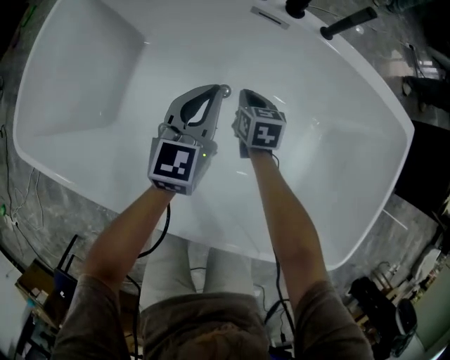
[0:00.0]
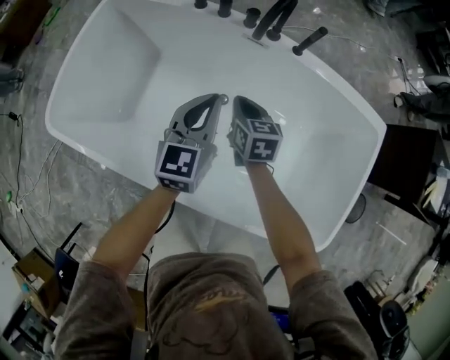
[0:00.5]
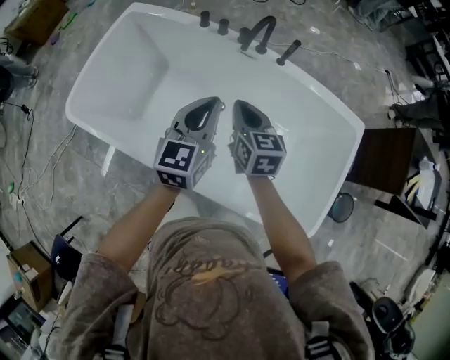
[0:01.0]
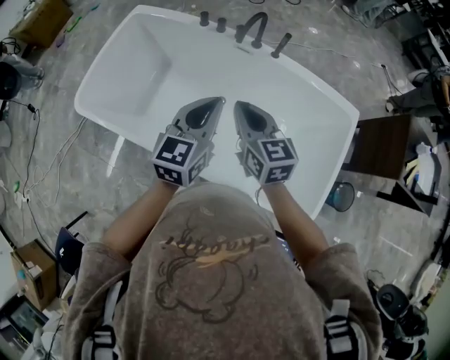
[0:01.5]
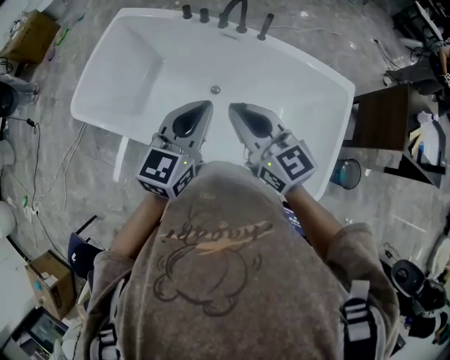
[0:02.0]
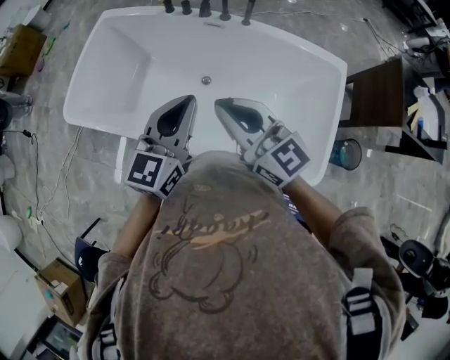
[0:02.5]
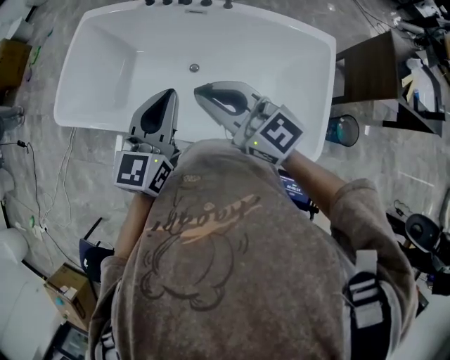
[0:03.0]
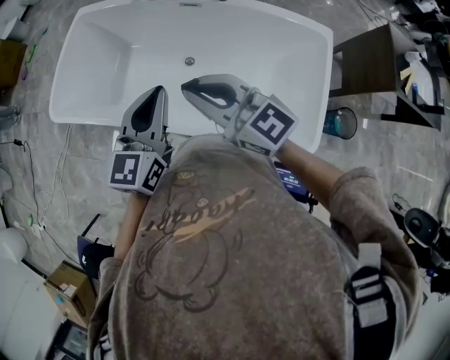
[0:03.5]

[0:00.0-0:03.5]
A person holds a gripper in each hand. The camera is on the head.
0:00.0 to 0:02.0: The two grippers go some 60 cm upward and backward. The right gripper tilts its fingers roughly 40 degrees upward.
0:02.0 to 0:03.5: The right gripper shifts roughly 5 cm backward.

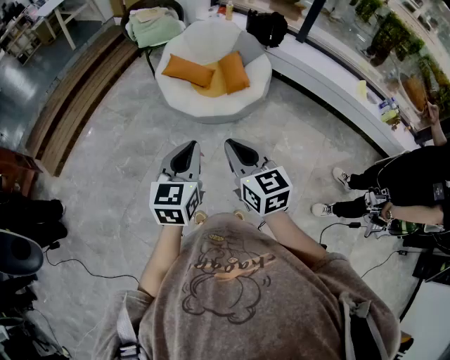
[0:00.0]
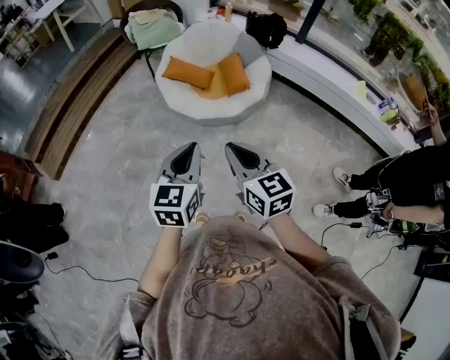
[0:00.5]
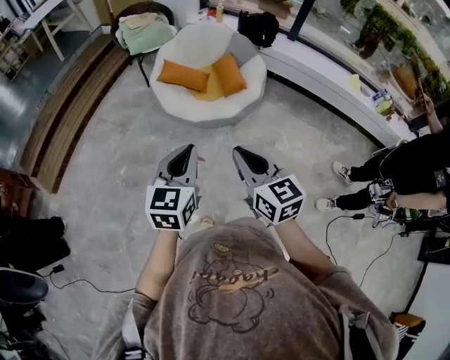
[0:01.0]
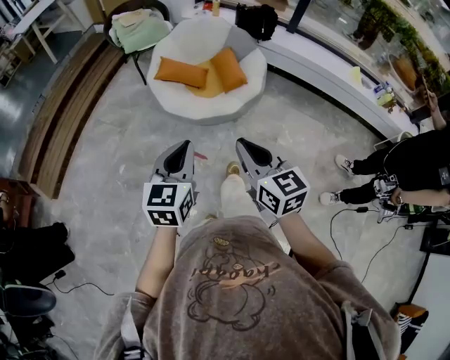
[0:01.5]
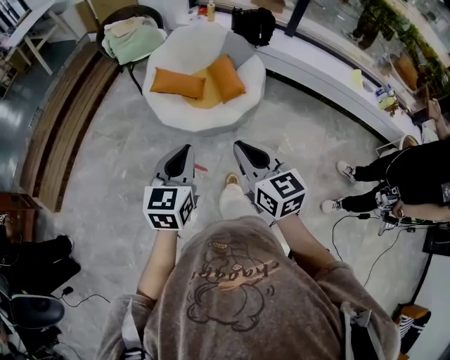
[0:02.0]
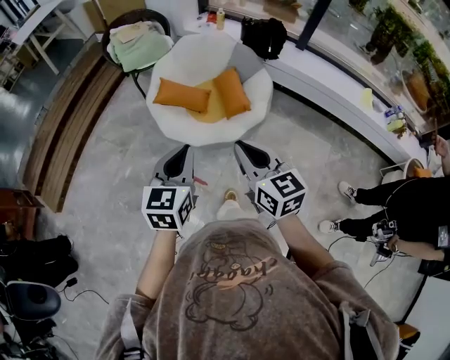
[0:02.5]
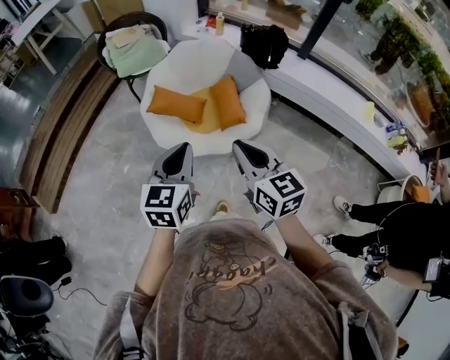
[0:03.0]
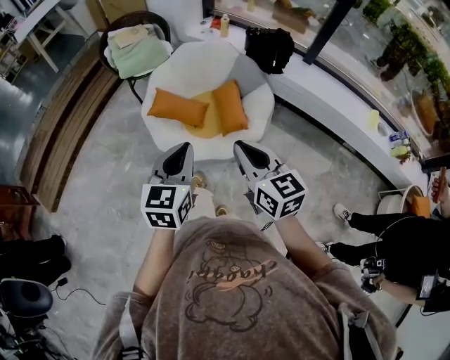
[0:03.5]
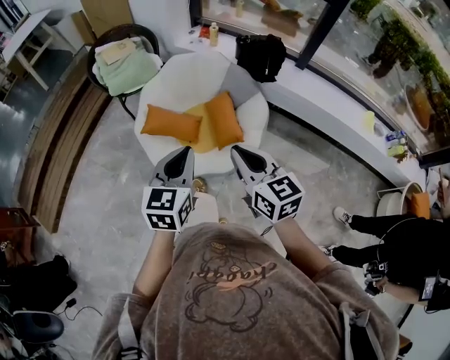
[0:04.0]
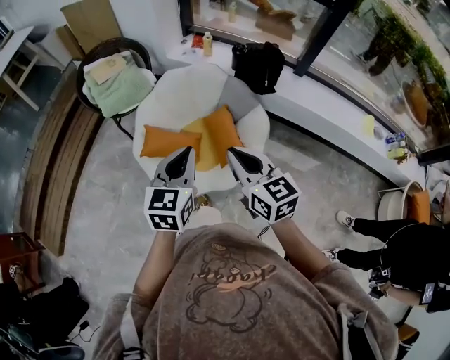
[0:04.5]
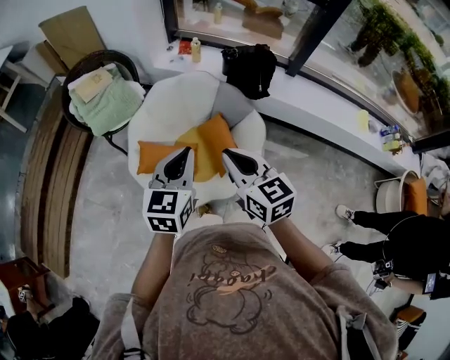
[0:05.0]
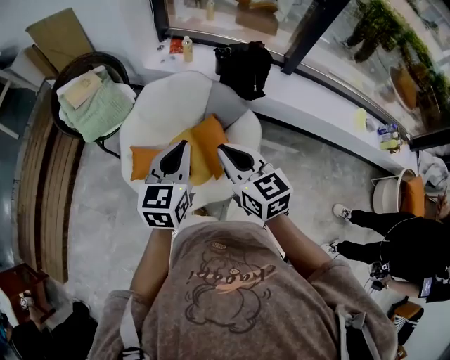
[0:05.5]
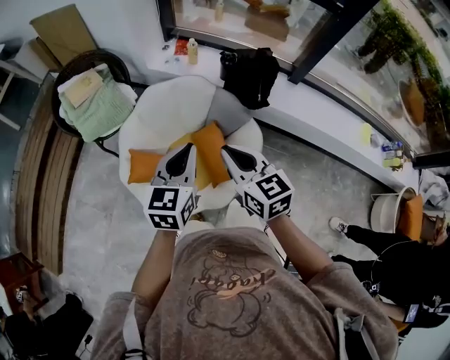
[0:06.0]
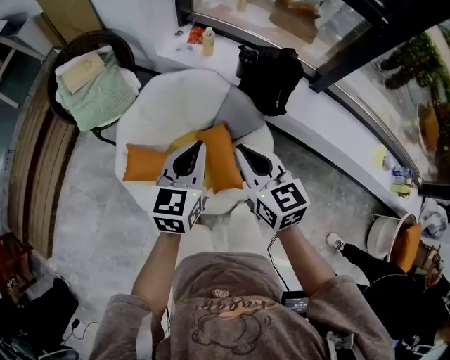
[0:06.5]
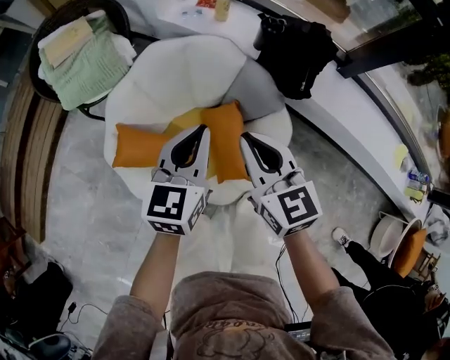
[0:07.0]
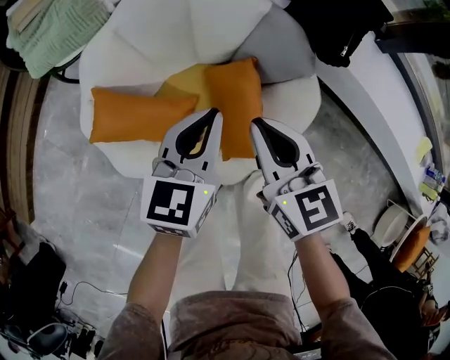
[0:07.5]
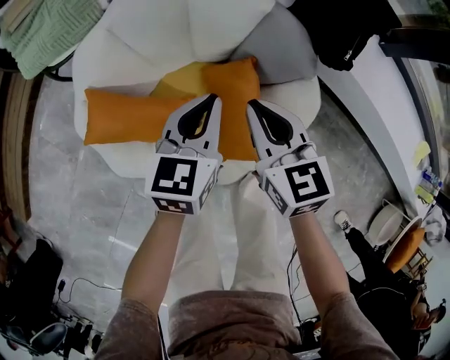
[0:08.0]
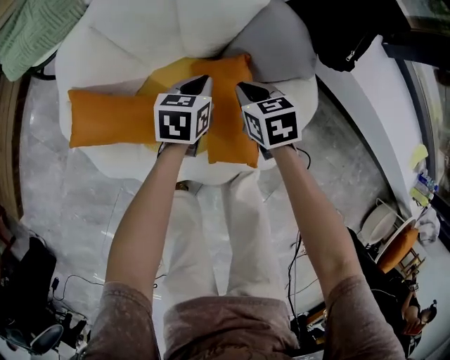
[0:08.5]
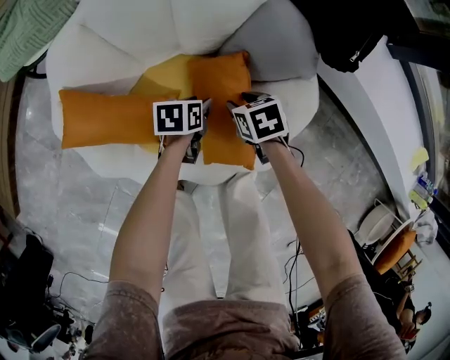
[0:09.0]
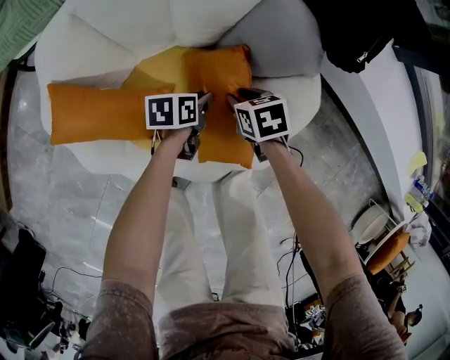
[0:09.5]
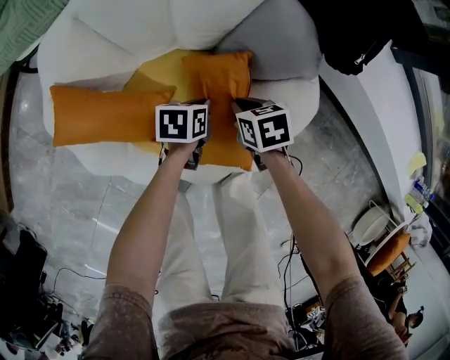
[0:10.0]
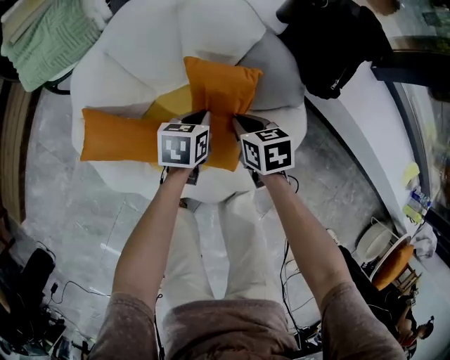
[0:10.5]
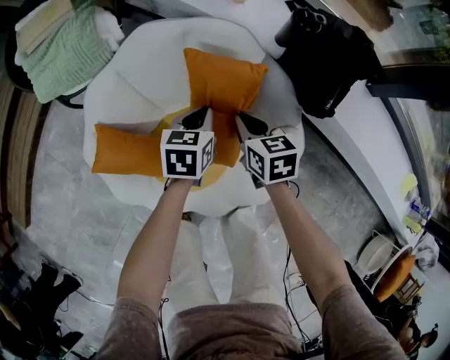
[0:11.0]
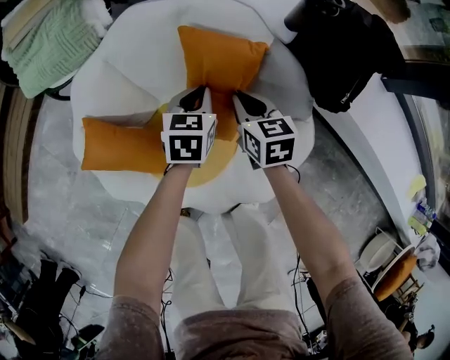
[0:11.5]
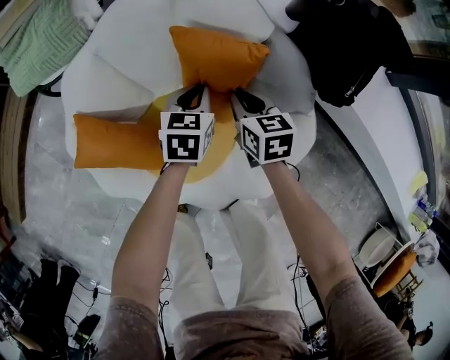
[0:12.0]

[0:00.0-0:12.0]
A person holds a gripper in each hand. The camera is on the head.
0:00.0 to 0:02.0: The two grippers go roughly 15 cm forward.
0:02.0 to 0:04.0: The left gripper is displaced forward and to the right by approximately 35 cm, while the right gripper shifts some 30 cm forward.
0:04.0 to 0:06.0: Both grippers travel together forward, about 30 cm.
0:06.0 to 0:08.0: The left gripper heads downward, covering about 35 cm; the right gripper travels downward and forward by roughly 35 cm.
0:08.0 to 0:10.0: The two grippers go roughly 25 cm downward. The left gripper turns by approximately 40 degrees, and opens, then closes once more. Meanwhile the right gripper points its fingers approximately 30 degrees further downward, and opens, then closes once more.
0:10.0 to 0:12.0: Both grippers move forward and upward, roughly 15 cm. The left gripper turns by roughly 30 degrees; the right gripper swivels approximately 30 degrees.

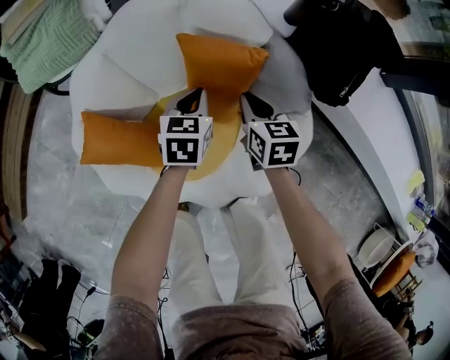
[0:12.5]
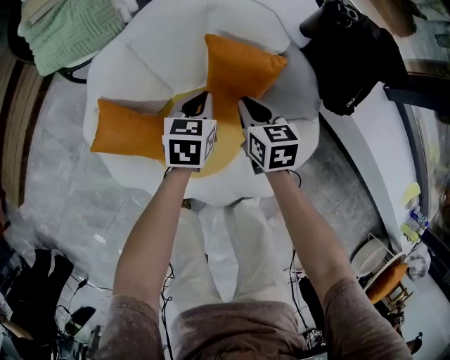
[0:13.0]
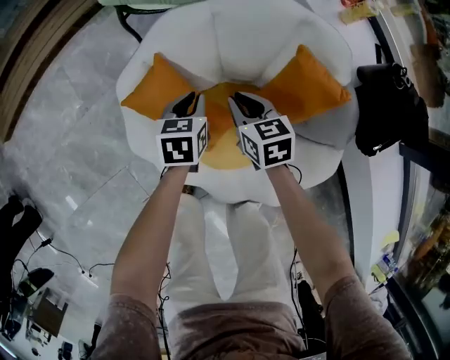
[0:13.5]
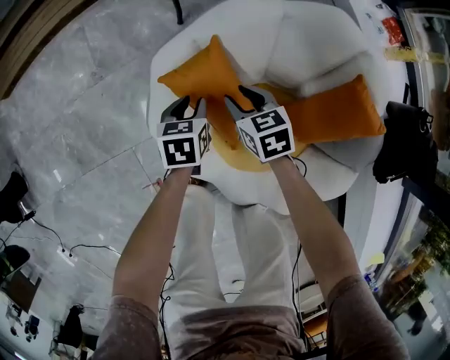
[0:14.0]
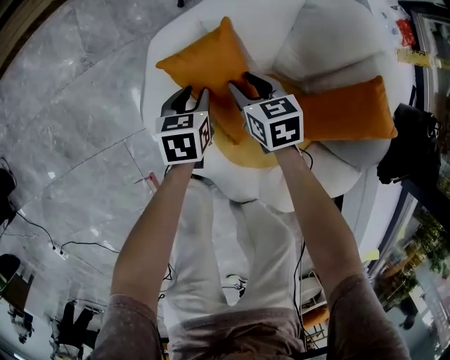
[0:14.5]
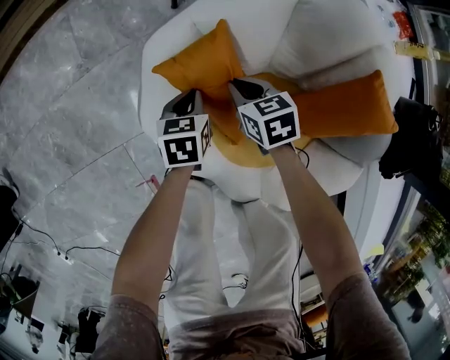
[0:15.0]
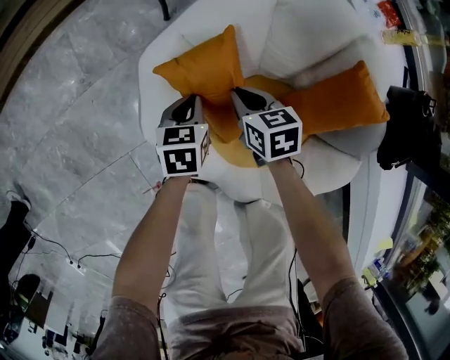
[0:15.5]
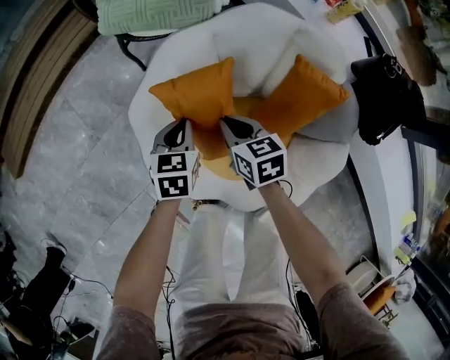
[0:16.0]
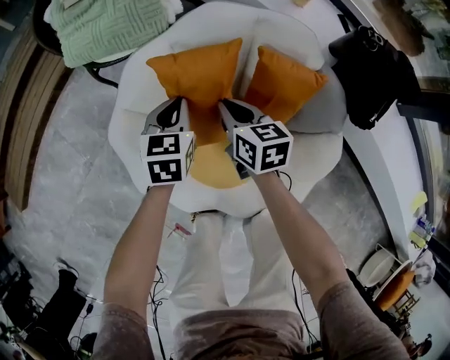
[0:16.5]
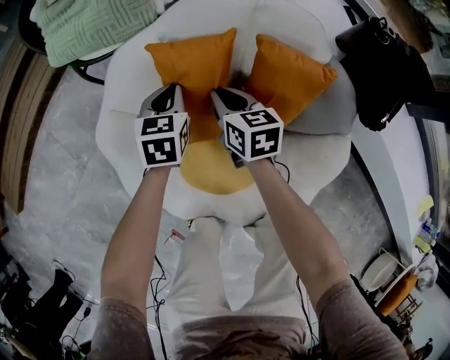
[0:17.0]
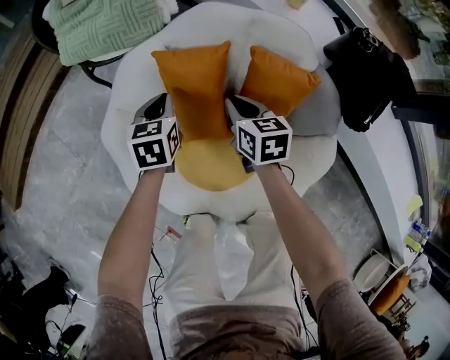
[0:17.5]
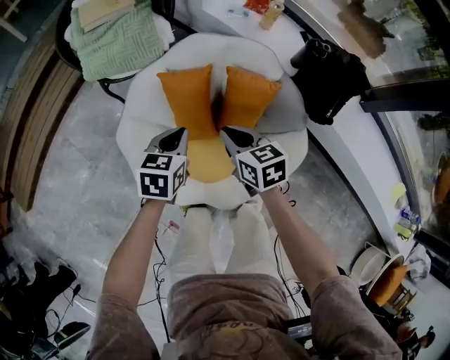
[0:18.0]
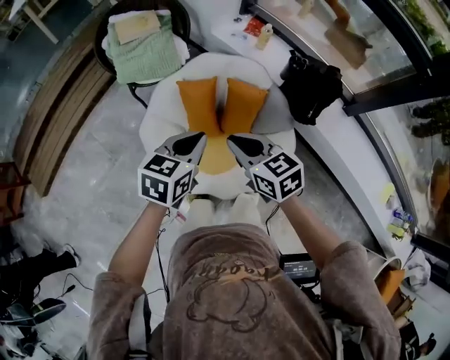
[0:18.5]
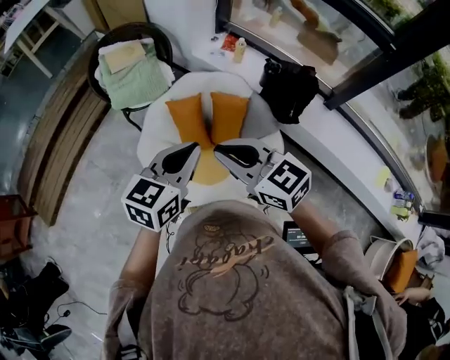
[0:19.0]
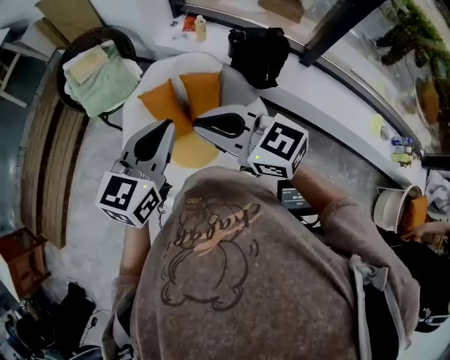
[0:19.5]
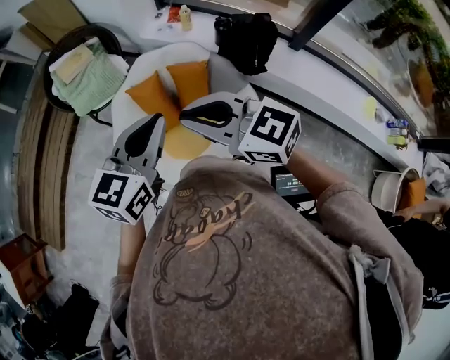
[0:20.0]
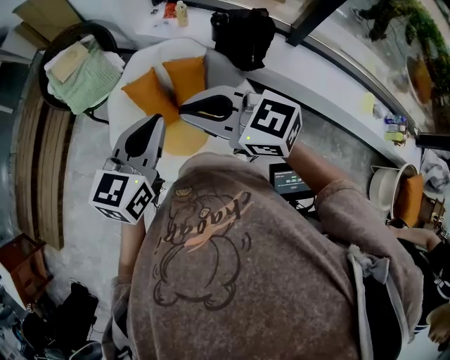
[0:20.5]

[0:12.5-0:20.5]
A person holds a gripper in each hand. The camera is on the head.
0:12.5 to 0:14.5: The right gripper moves about 40 cm, turns by roughly 50 degrees, and opens up. The left gripper shifts by roughly 40 cm, changes its angle by about 50 degrees, and opens its fingers.
0:14.5 to 0:16.5: The right gripper moves roughly 20 cm, changes its angle by roughly 40 degrees, and closes up, while the left gripper moves roughly 25 cm, turns by approximately 40 degrees, and closes its fingers.
0:16.5 to 0:18.5: The grippers both shift upward and backward by some 40 cm. The left gripper changes its angle by approximately 20 degrees. Meanwhile the right gripper rotates about 20 degrees.
0:18.5 to 0:20.5: Both grippers move upward and backward, about 15 cm. The right gripper turns by some 20 degrees. The left gripper rotates about 20 degrees.

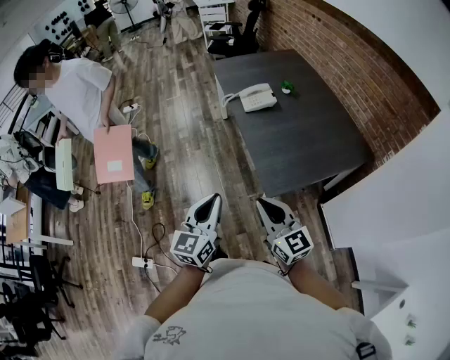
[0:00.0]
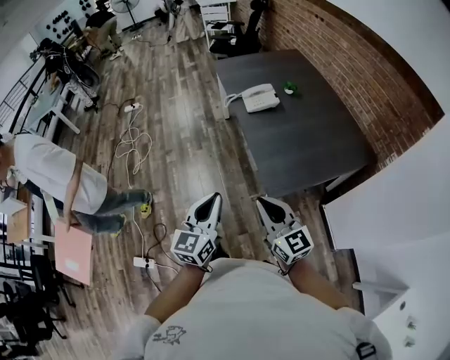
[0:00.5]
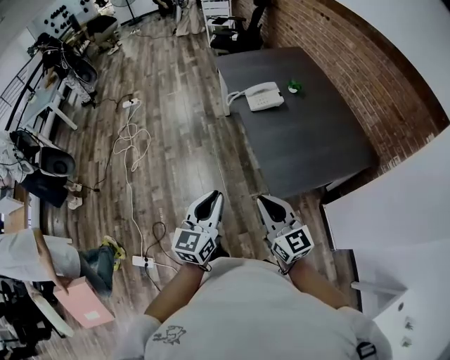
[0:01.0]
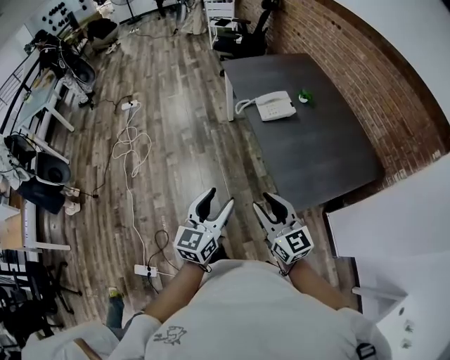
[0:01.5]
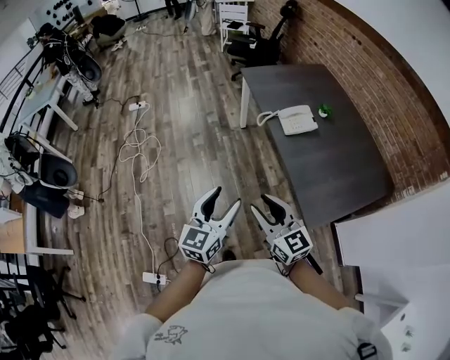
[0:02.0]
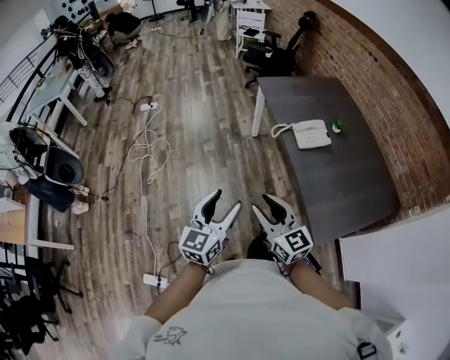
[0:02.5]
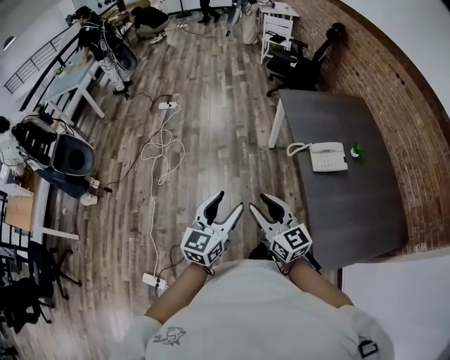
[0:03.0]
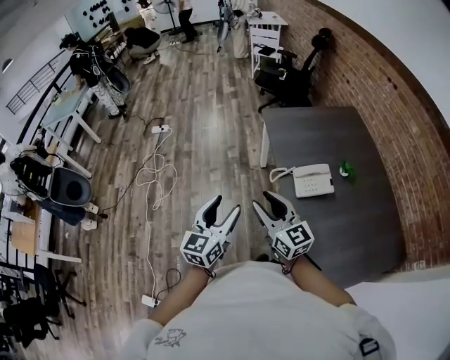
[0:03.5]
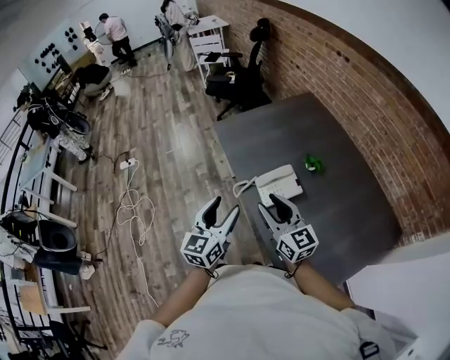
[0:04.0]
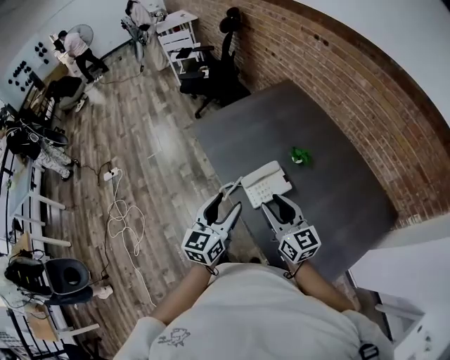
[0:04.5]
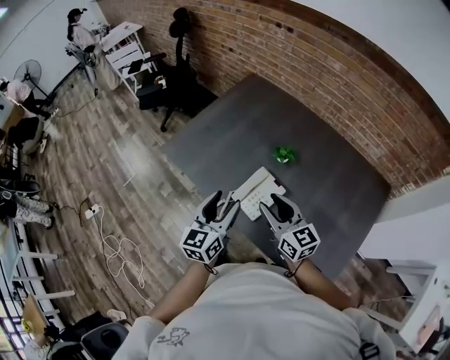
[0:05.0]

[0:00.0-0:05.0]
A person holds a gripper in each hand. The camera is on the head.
0:00.0 to 0:02.5: The right gripper moves to the left and forward, approximately 35 cm, and opens. The left gripper travels forward and to the left by some 30 cm, and opens its fingers.
0:02.5 to 0:05.0: The two grippers travel together, about 50 cm. The left gripper swivels some 30 degrees, while the right gripper turns by about 40 degrees.
